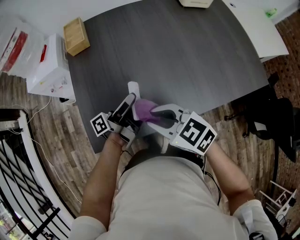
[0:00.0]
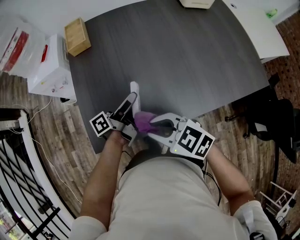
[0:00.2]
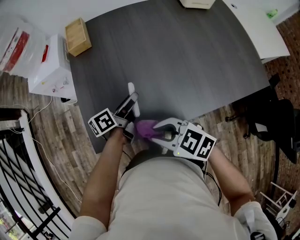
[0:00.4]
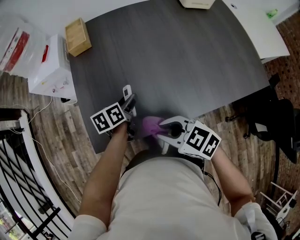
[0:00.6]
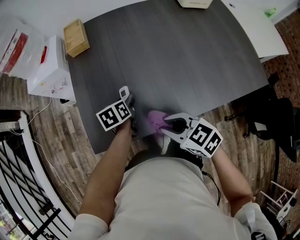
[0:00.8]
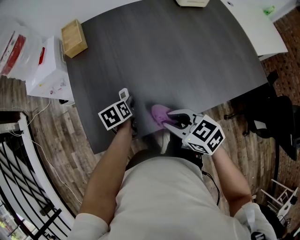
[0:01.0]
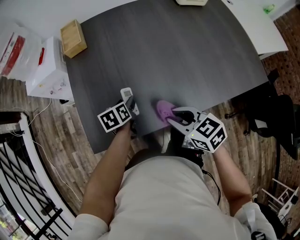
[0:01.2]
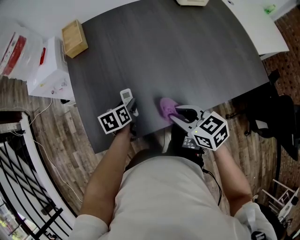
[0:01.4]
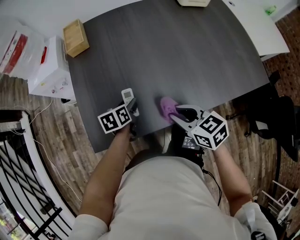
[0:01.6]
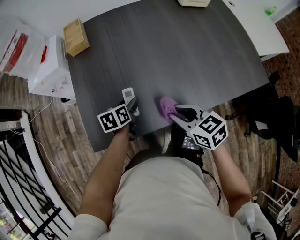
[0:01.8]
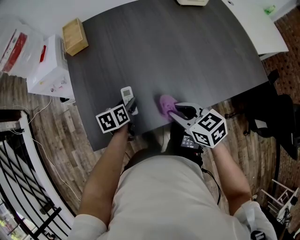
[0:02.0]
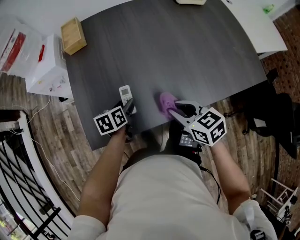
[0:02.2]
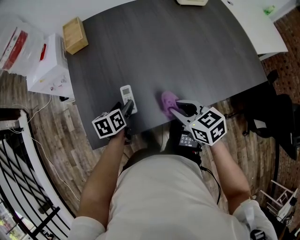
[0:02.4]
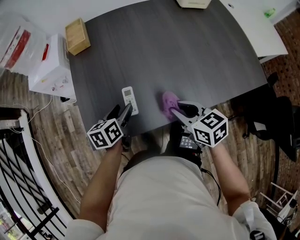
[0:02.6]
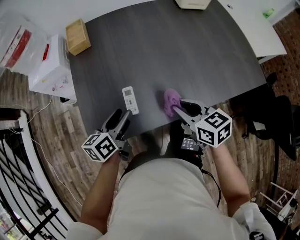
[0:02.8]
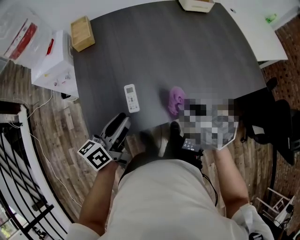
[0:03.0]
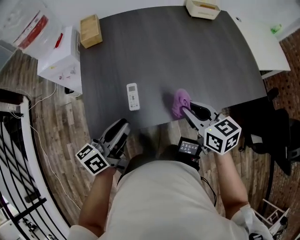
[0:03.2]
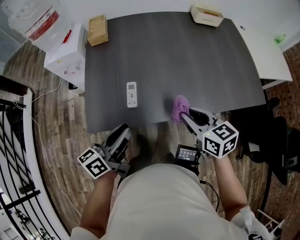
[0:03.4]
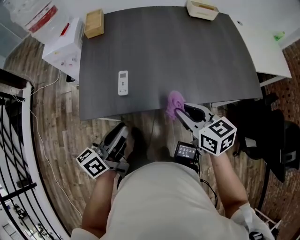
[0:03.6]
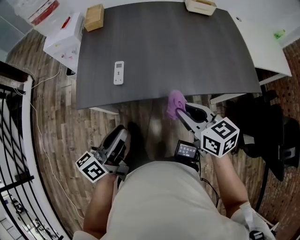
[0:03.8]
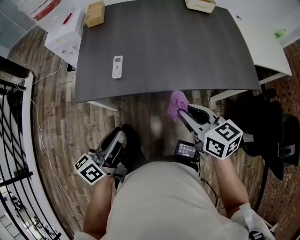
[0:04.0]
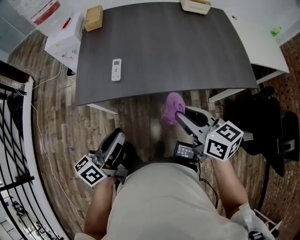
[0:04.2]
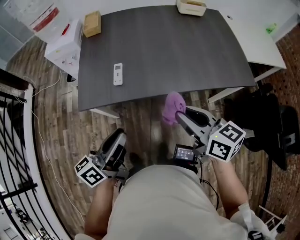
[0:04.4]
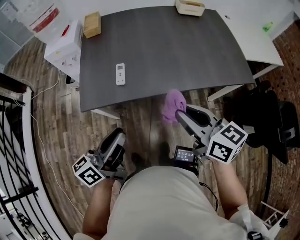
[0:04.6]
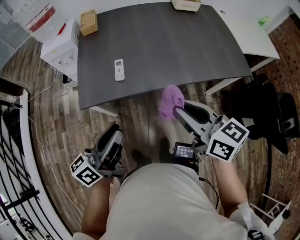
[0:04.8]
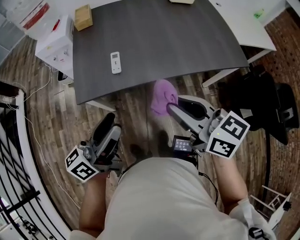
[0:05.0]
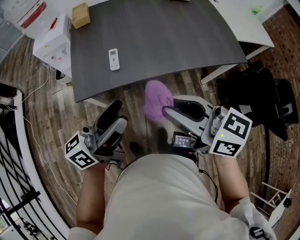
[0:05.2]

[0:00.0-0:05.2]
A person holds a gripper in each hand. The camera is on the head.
0.0 to 1.8 s: The left gripper travels downward by about 10 cm, and tilts its fingers some 60 degrees downward, while the right gripper moves to the right and downward, approximately 10 cm, and swivels approximately 20 degrees.
1.8 to 3.4 s: The left gripper is displaced upward and backward by some 25 cm, points its fingers about 40 degrees further upward, and closes its fingers. Meanwhile the right gripper travels upward and to the right by roughly 10 cm.
3.4 to 5.2 s: The two grippers go about 20 cm backward and upward. The right gripper changes its angle by approximately 20 degrees. The left gripper changes its angle by some 20 degrees, and opens up.

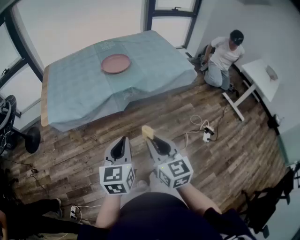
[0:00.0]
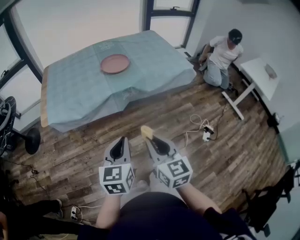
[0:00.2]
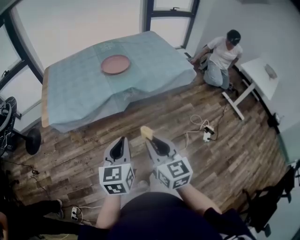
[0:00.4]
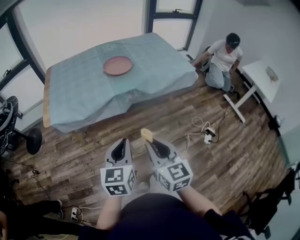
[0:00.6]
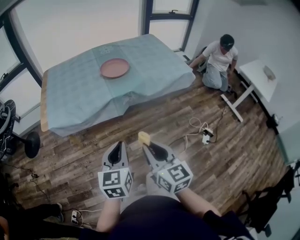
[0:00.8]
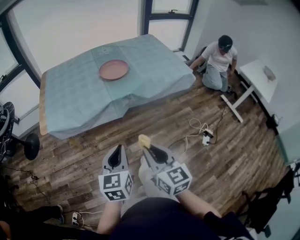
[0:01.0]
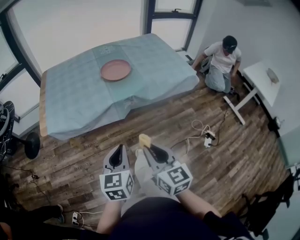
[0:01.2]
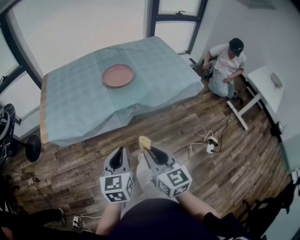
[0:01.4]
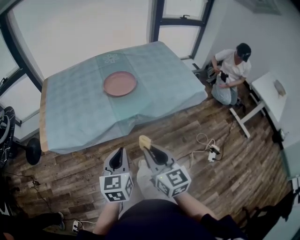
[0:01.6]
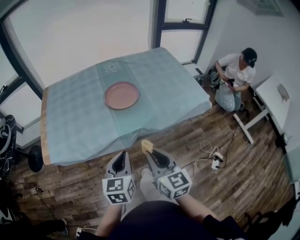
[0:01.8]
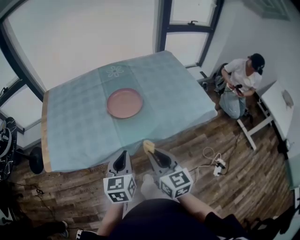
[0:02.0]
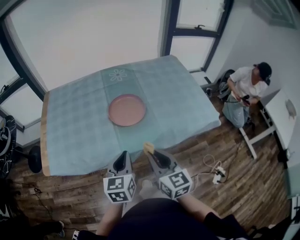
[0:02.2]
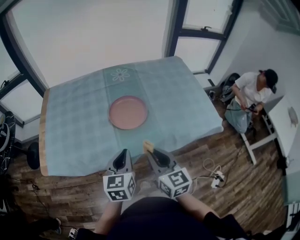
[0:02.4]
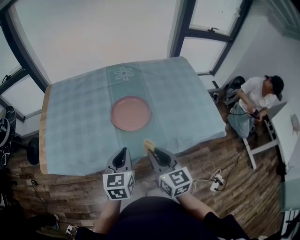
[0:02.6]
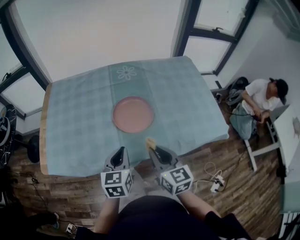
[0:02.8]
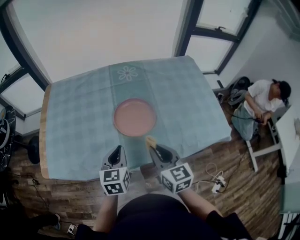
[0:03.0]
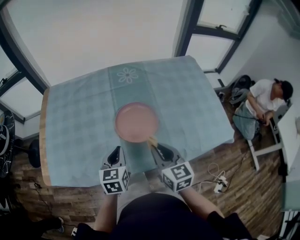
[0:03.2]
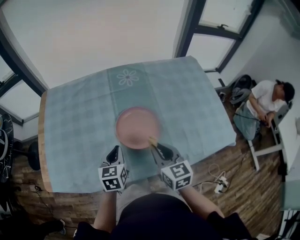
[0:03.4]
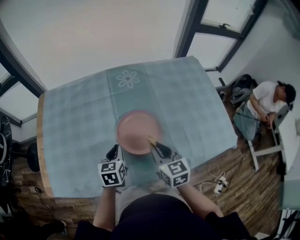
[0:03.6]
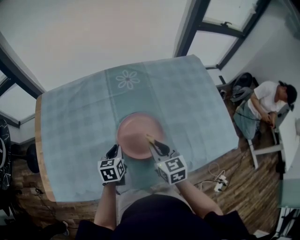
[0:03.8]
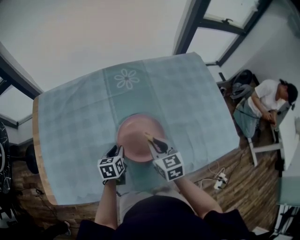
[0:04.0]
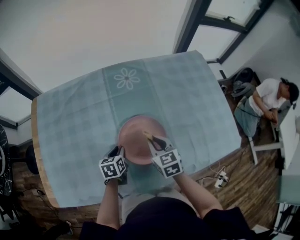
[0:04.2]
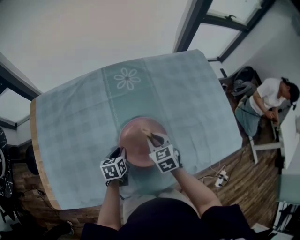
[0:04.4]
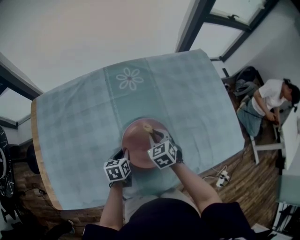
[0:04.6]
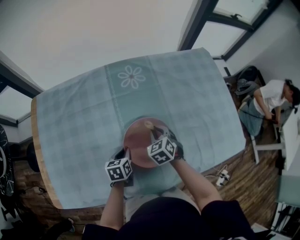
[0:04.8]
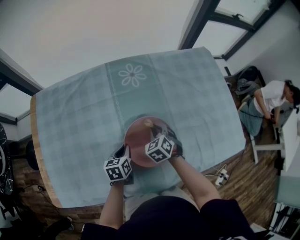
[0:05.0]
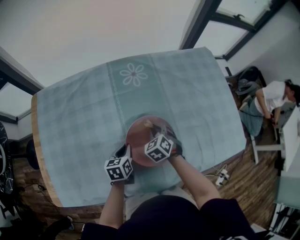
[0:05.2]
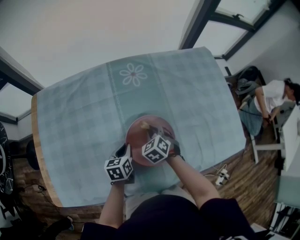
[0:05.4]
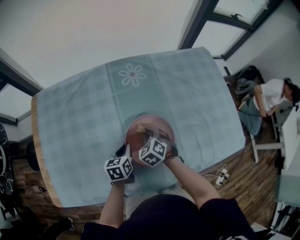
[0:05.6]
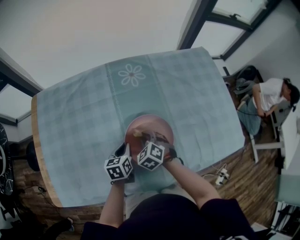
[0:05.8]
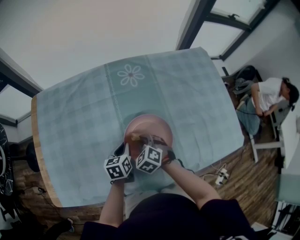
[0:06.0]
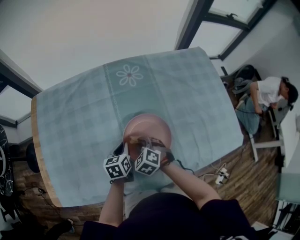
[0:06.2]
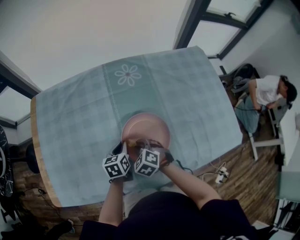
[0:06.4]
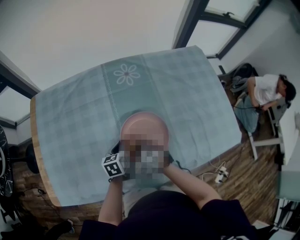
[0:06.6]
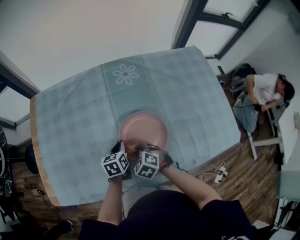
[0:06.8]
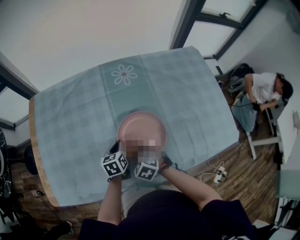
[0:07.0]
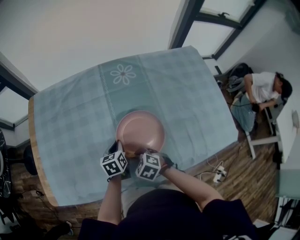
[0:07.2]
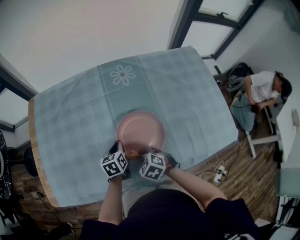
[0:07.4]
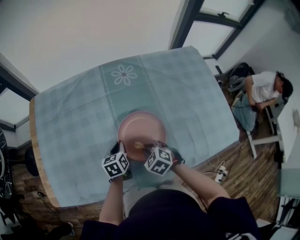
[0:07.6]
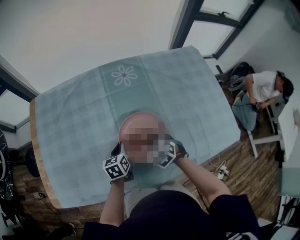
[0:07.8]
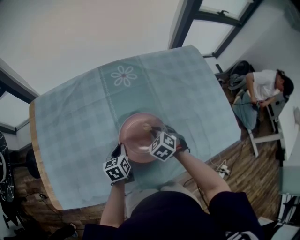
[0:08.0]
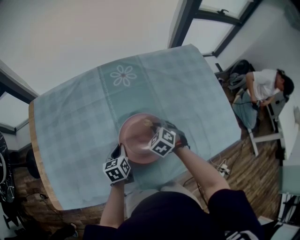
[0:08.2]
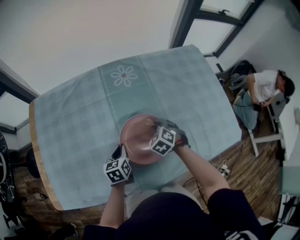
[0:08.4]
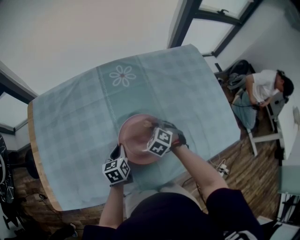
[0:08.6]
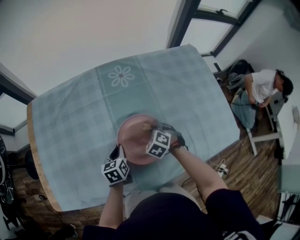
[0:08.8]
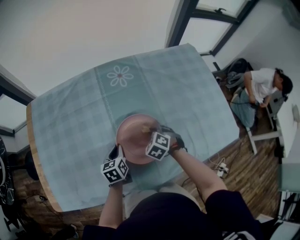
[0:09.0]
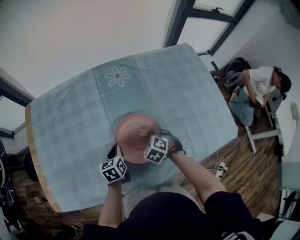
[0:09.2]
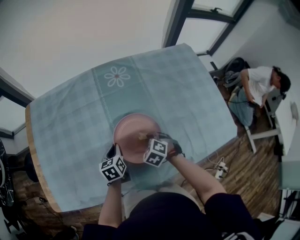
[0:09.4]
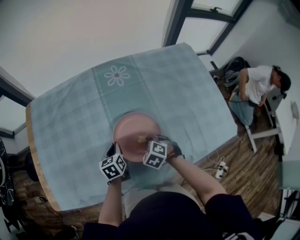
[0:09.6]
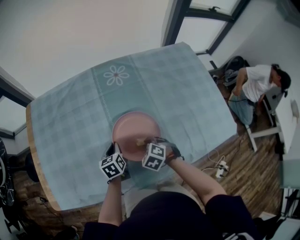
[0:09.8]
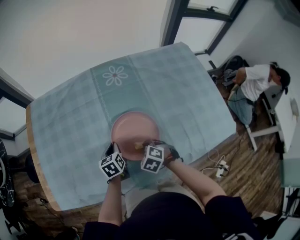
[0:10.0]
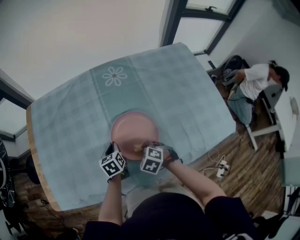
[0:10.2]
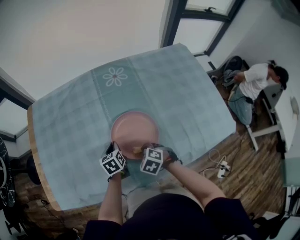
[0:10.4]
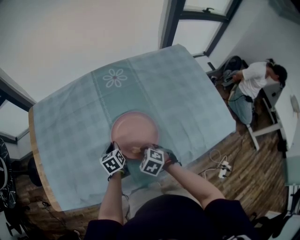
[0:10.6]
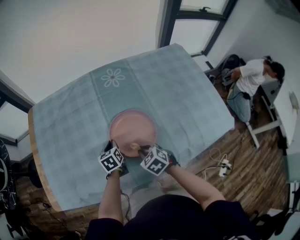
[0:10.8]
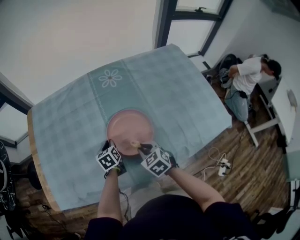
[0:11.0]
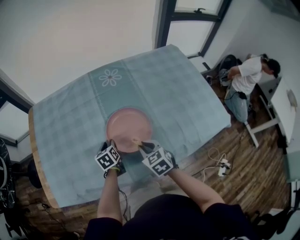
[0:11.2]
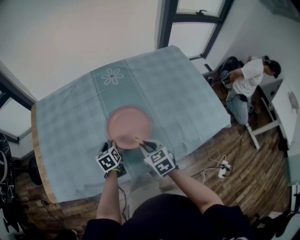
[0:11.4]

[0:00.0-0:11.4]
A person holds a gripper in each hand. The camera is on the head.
0.0 to 1.4 s: Both grippers move forward, some 10 cm.
1.4 to 2.8 s: The two grippers go approximately 40 cm forward.
2.8 to 4.2 s: The grippers both shift forward and downward by approximately 30 cm. The left gripper rotates approximately 30 degrees, and opens, while the right gripper turns by approximately 20 degrees.
4.2 to 5.6 s: The right gripper moves downward and to the left, approximately 10 cm, and swivels some 40 degrees.
5.6 to 7.2 s: The right gripper shifts by some 15 cm, and rotates some 20 degrees.
7.2 to 8.6 s: The right gripper changes place by roughly 20 cm, and rotates approximately 20 degrees.
8.6 to 10.0 s: The right gripper is displaced backward by about 10 cm.
10.0 to 11.4 s: The right gripper moves upward and backward, approximately 10 cm, and swivels about 40 degrees. The left gripper moves backward, about 5 cm, and opens up.

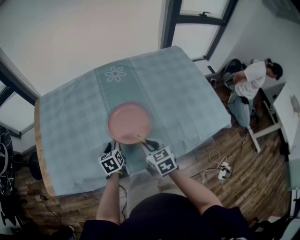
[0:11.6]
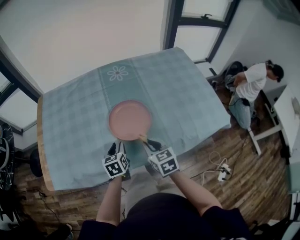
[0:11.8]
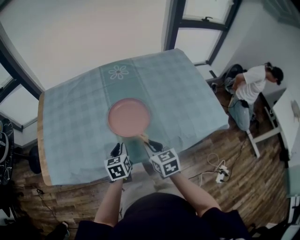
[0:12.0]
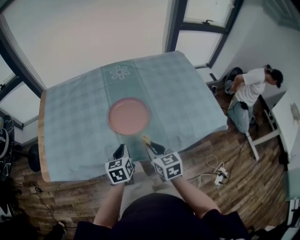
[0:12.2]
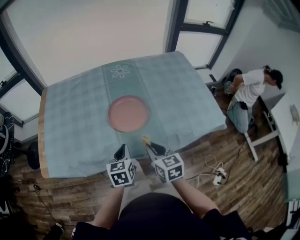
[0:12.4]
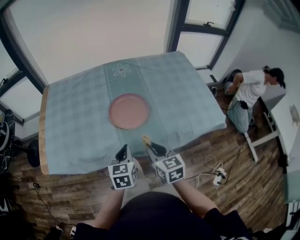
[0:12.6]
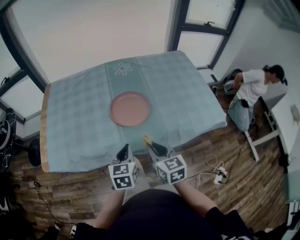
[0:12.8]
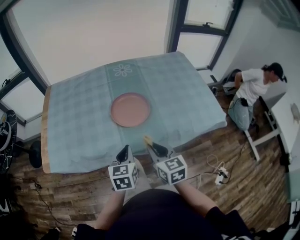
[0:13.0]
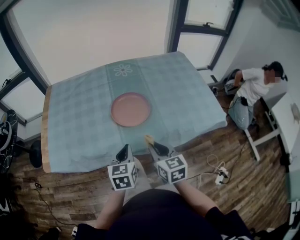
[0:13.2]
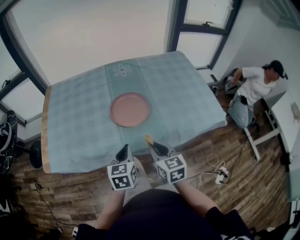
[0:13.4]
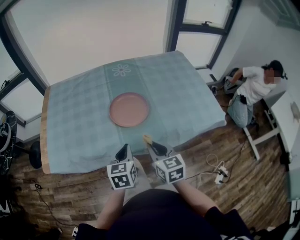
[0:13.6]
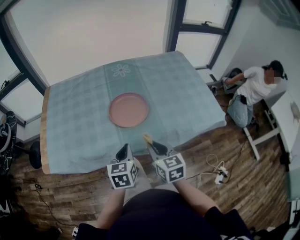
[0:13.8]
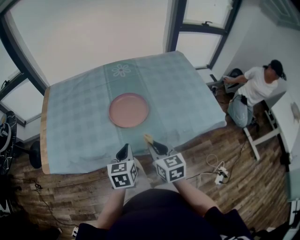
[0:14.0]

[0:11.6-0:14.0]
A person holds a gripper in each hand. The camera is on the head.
11.6 to 12.8 s: Both grippers move backward and upward, some 20 cm. The left gripper closes.
12.8 to 14.0 s: There are only small adjustments of the grippers.

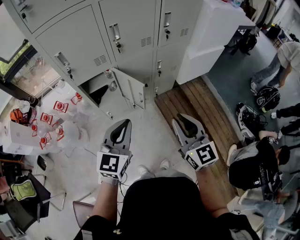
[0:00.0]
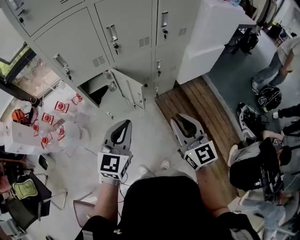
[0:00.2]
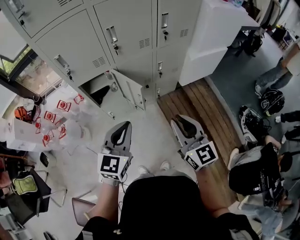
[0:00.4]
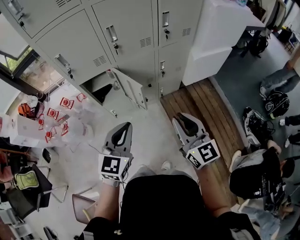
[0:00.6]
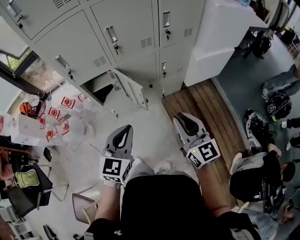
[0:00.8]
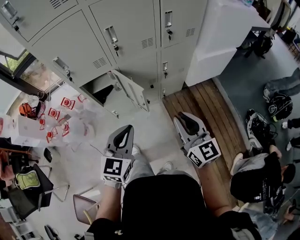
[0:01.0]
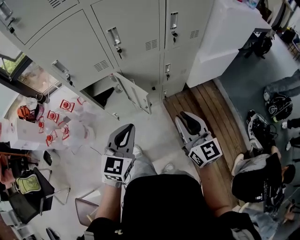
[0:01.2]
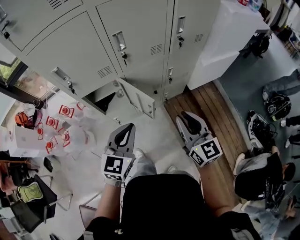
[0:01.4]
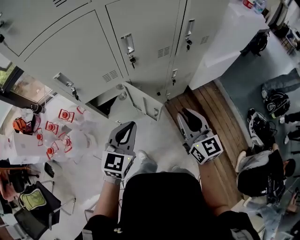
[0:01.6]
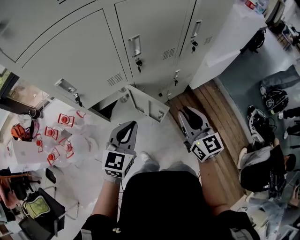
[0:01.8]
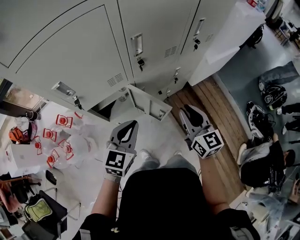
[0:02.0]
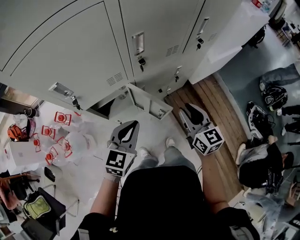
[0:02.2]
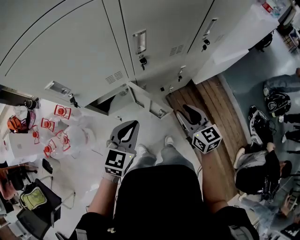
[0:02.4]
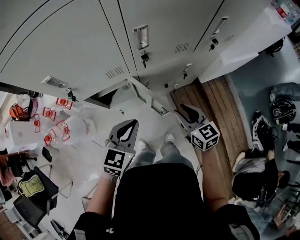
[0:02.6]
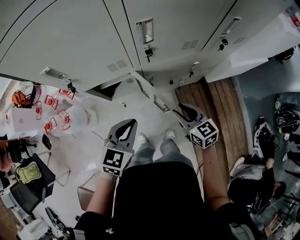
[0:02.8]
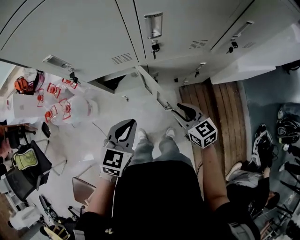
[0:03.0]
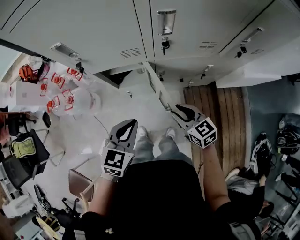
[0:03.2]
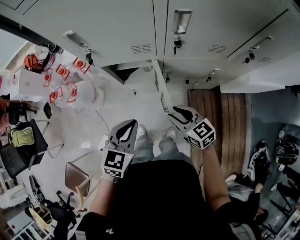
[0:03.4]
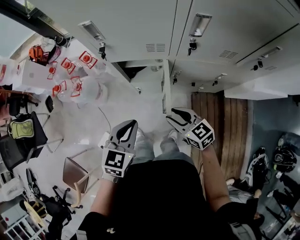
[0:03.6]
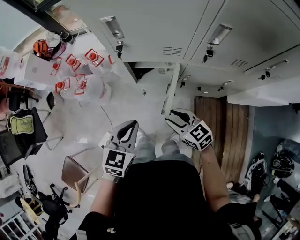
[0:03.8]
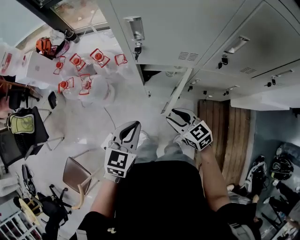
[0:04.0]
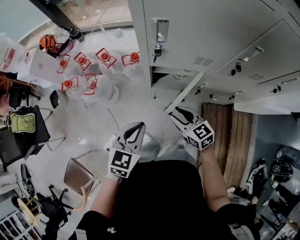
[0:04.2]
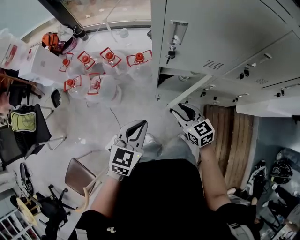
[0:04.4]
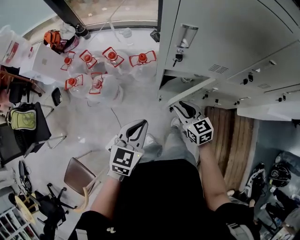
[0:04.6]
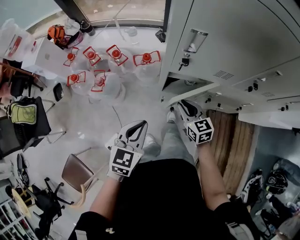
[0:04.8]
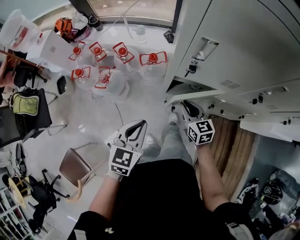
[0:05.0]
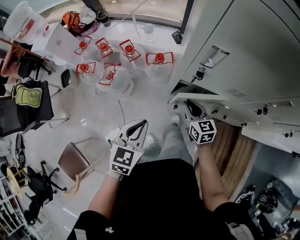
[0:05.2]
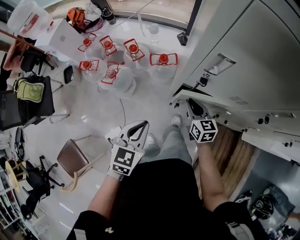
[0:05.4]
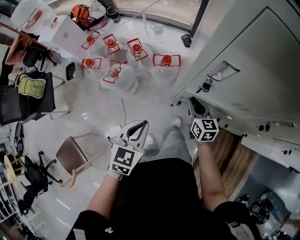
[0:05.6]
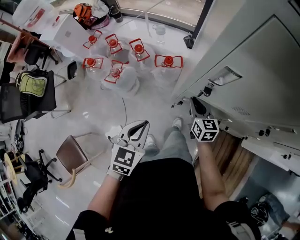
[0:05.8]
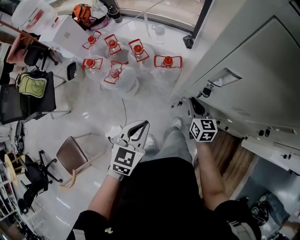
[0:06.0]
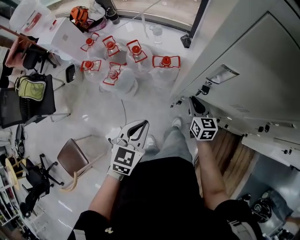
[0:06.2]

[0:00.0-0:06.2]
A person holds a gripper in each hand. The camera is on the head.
0.0 to 1.6 s: Both grippers travel together forward, roughly 15 cm.
1.6 to 3.2 s: The left gripper is displaced downward by roughly 10 cm, and changes its angle by approximately 20 degrees; the right gripper goes approximately 20 cm downward, and turns by about 40 degrees.
3.2 to 4.6 s: The left gripper shifts some 25 cm to the left. The right gripper goes about 25 cm to the left and forward.
4.6 to 6.2 s: The left gripper heads forward, covering approximately 5 cm. The right gripper travels forward by roughly 15 cm.
